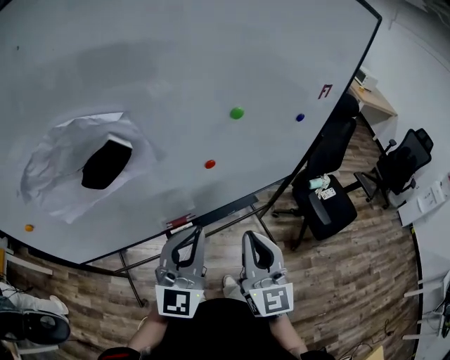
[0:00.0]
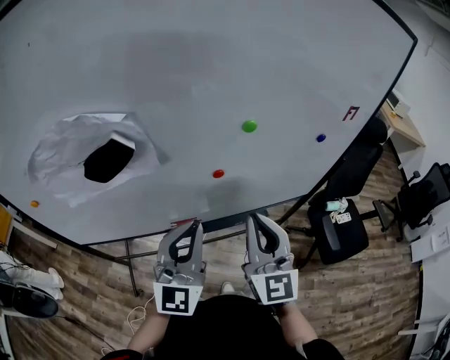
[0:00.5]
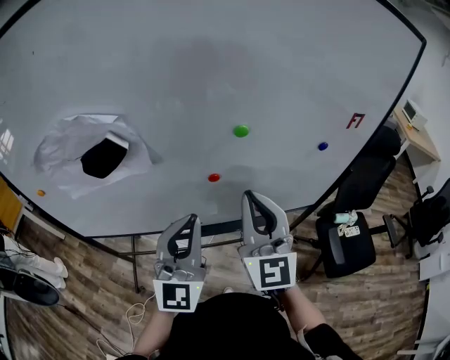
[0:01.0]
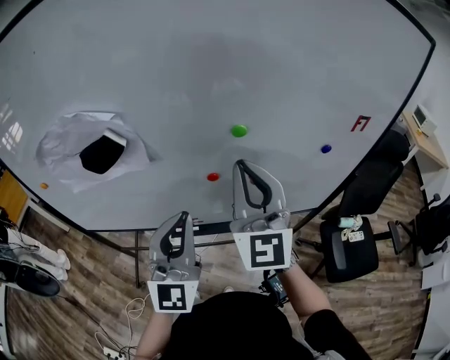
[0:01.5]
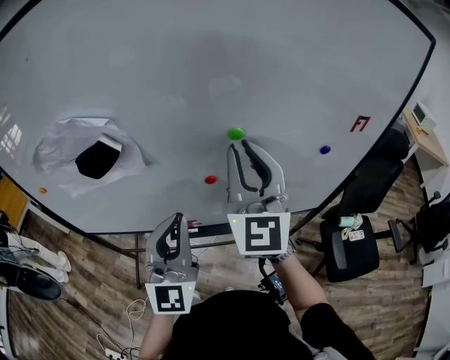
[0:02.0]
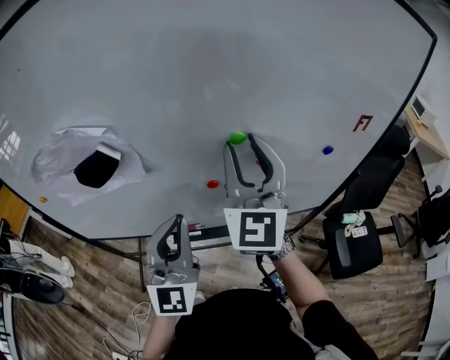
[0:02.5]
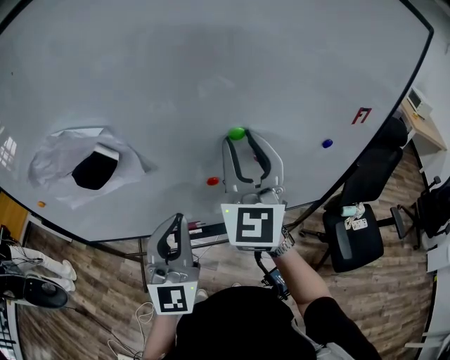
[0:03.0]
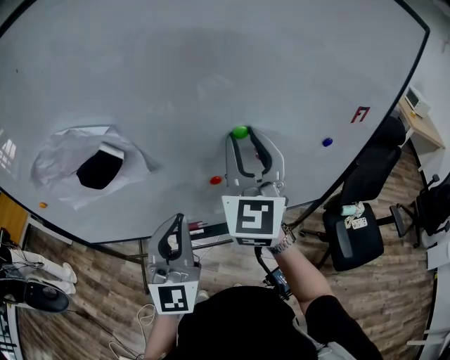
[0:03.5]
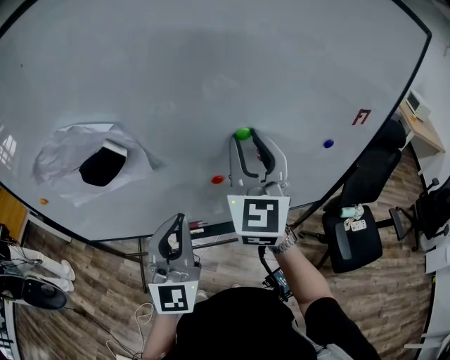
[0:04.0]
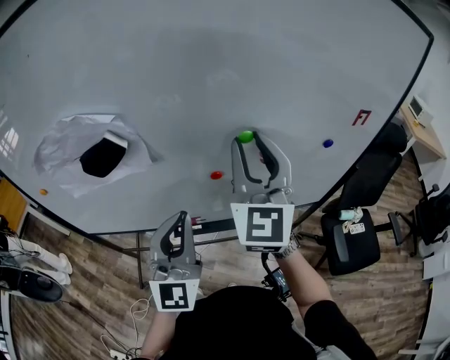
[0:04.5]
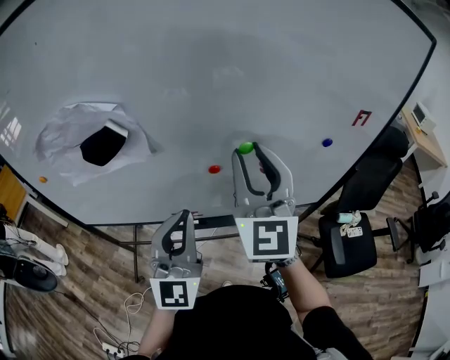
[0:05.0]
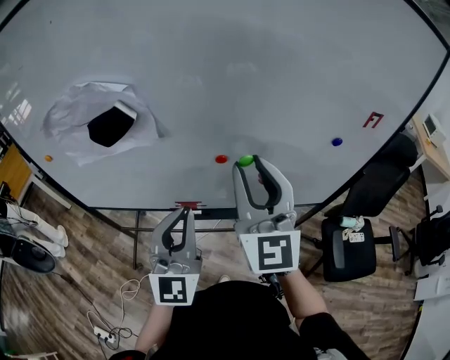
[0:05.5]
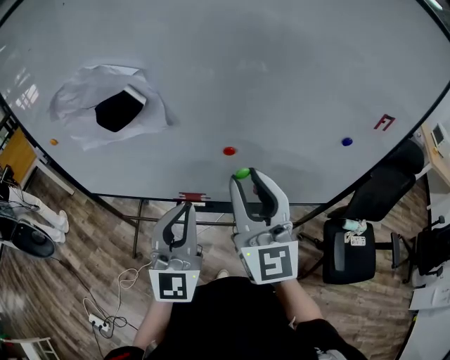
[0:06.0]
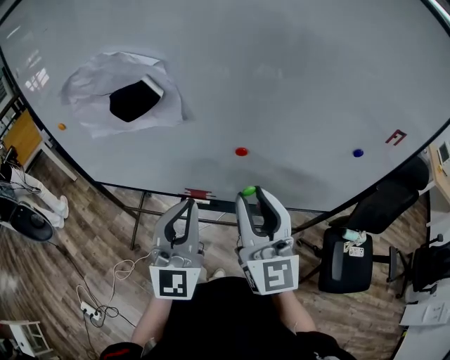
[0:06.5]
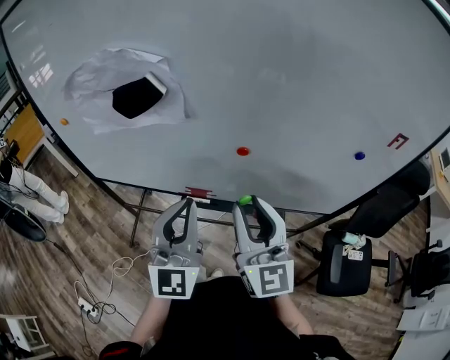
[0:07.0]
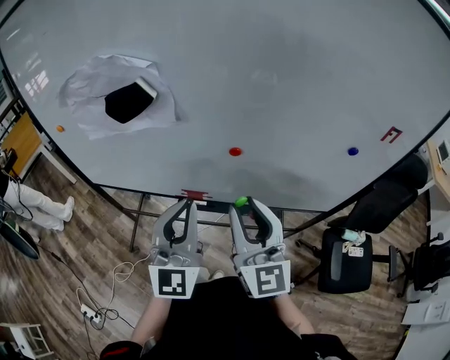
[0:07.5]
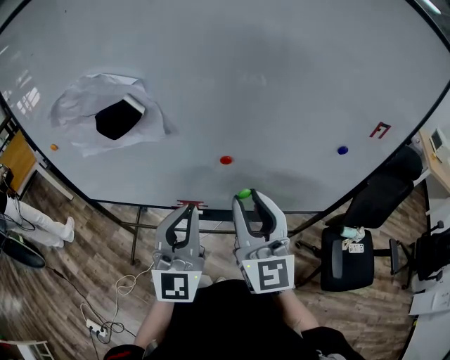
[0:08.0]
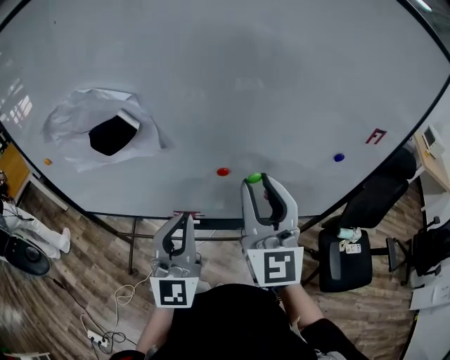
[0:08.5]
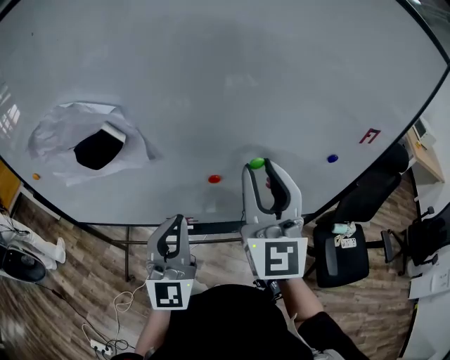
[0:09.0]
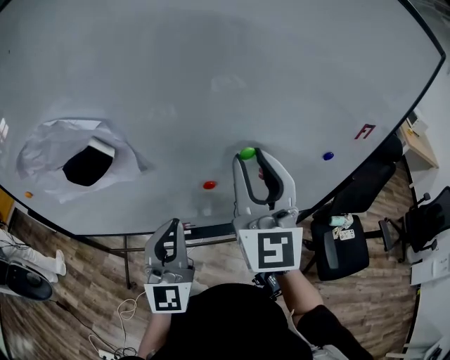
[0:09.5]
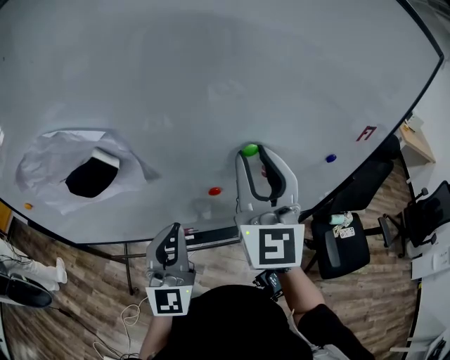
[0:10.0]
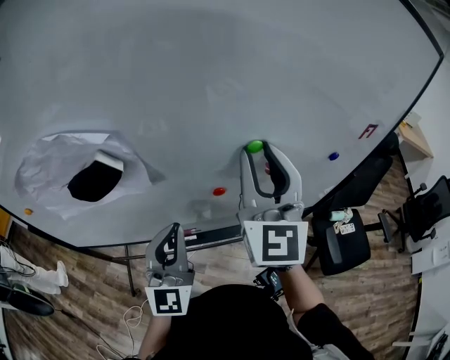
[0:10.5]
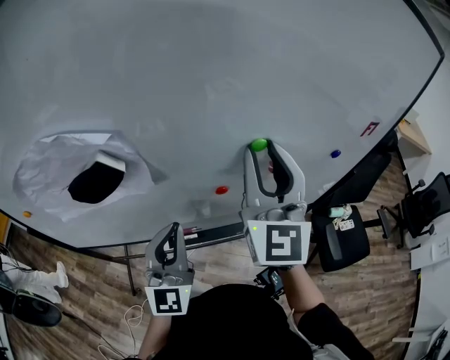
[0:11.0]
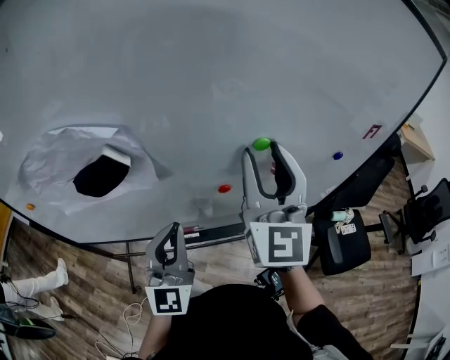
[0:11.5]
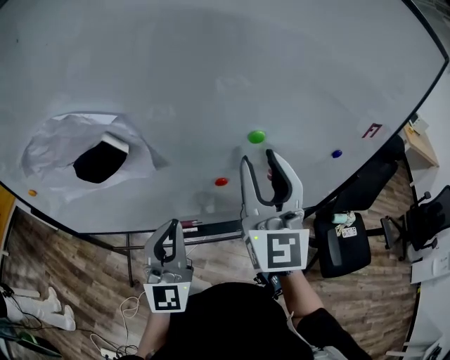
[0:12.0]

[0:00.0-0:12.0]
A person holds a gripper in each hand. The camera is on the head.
0:00.0 to 0:02.0: The right gripper is displaced forward and upward by approximately 25 cm, and swivels roughly 20 degrees. Meanwhile the left gripper moves about 5 cm, and turns by approximately 30 degrees.
0:02.0 to 0:04.0: The grippers move only a little.
0:04.0 to 0:06.0: The left gripper changes place by roughly 5 cm. The right gripper goes about 15 cm backward and downward, and changes its angle by about 20 degrees.
0:08.0 to 0:10.0: The right gripper heads forward and upward, covering some 15 cm, and turns by some 20 degrees. Meanwhile the left gripper travels forward by approximately 5 cm.
0:10.0 to 0:12.0: There are only small adjustments of the grippers.

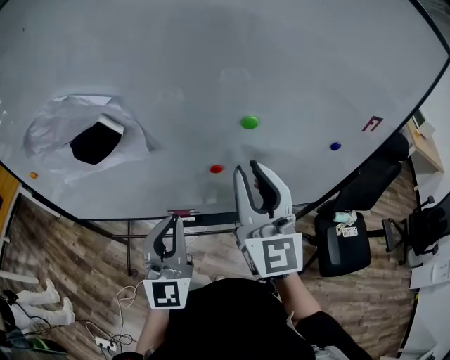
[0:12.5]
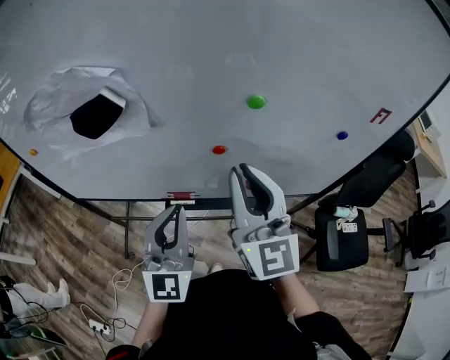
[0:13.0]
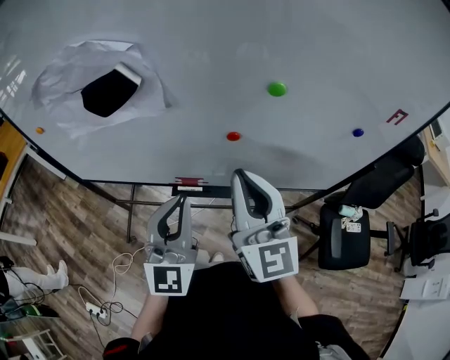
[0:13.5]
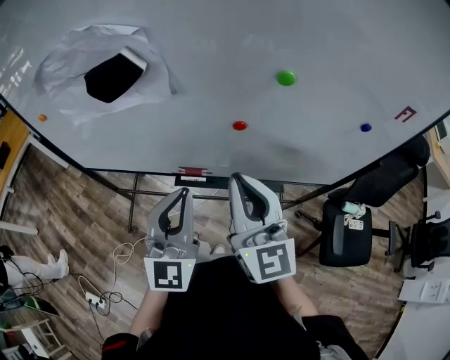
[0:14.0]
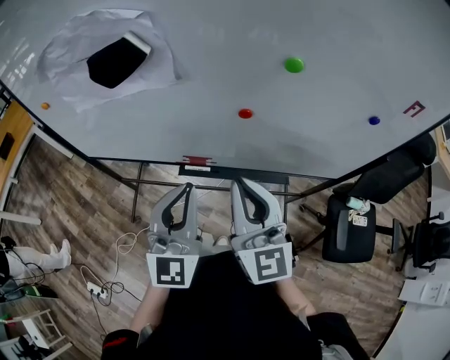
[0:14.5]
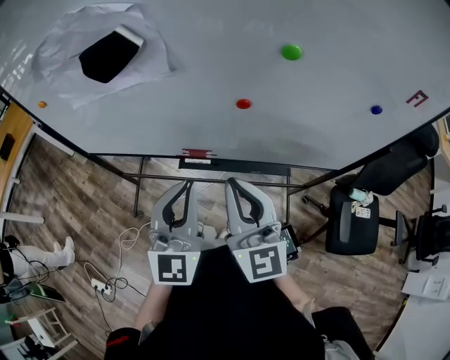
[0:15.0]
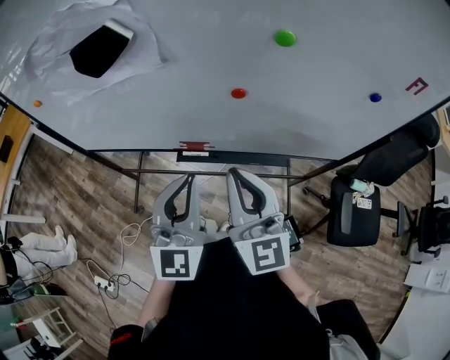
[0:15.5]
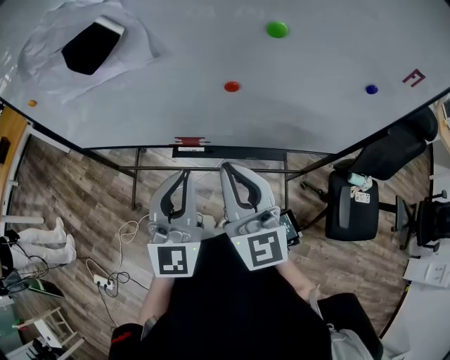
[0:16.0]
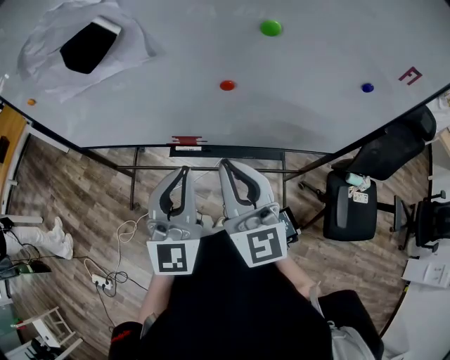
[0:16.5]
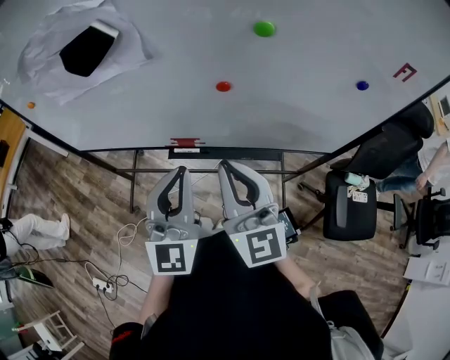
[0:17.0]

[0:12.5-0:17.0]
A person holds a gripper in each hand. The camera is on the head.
0:12.5 to 0:14.5: The right gripper heads downward, backward and to the left, covering roughly 15 cm. Meanwhile the left gripper ends up some 5 cm from where it was.
0:14.5 to 0:17.0: The grippers move only a little.

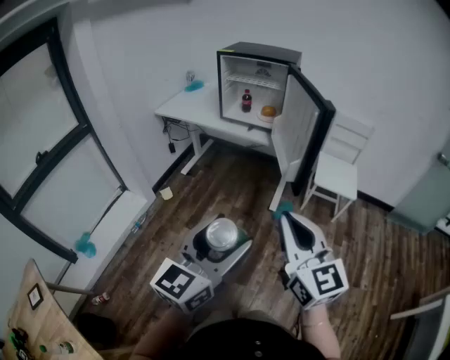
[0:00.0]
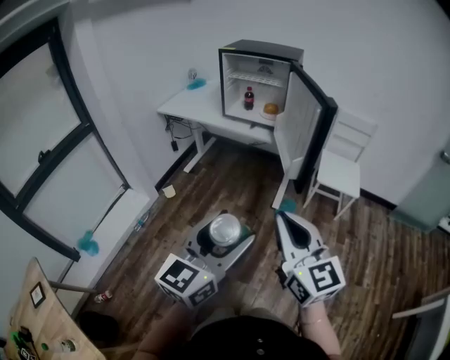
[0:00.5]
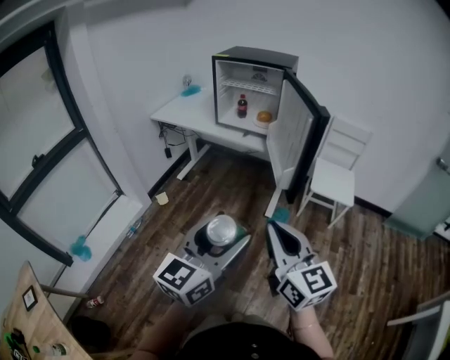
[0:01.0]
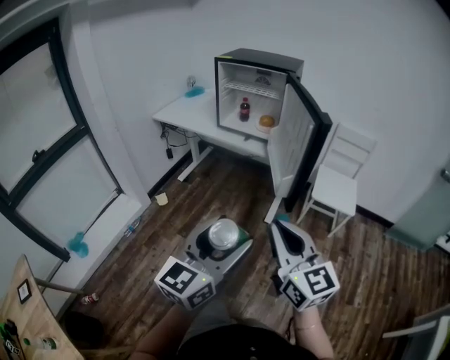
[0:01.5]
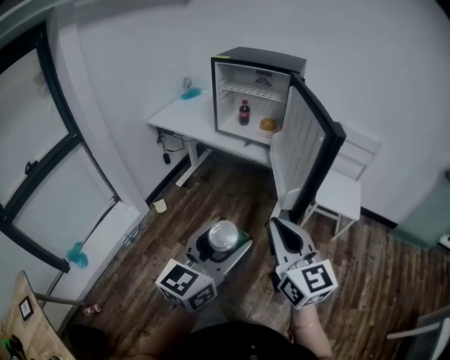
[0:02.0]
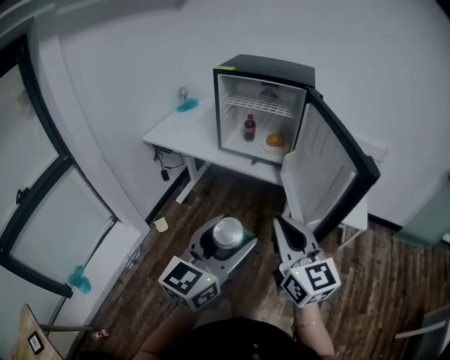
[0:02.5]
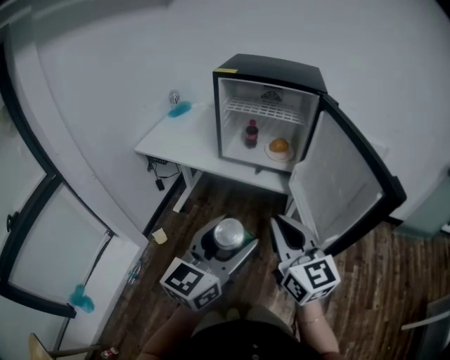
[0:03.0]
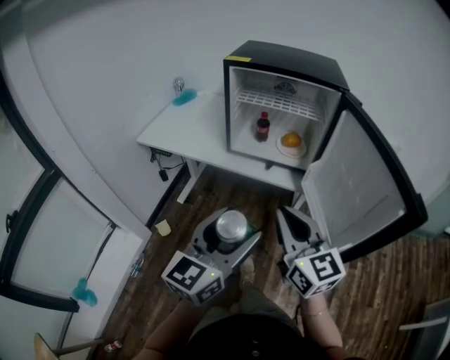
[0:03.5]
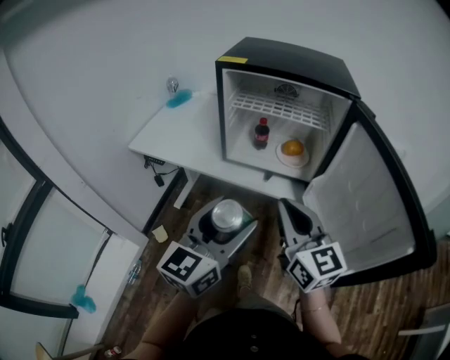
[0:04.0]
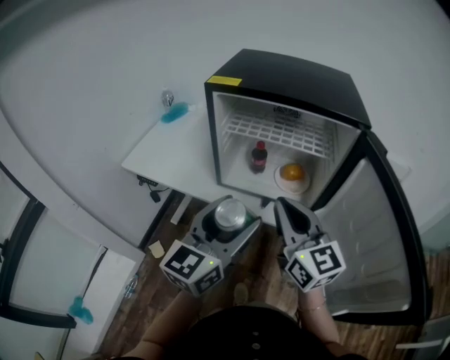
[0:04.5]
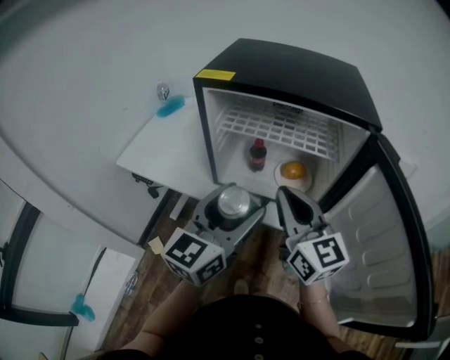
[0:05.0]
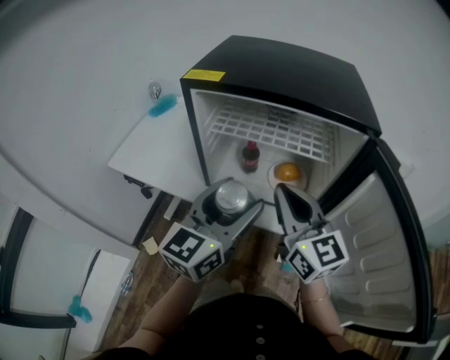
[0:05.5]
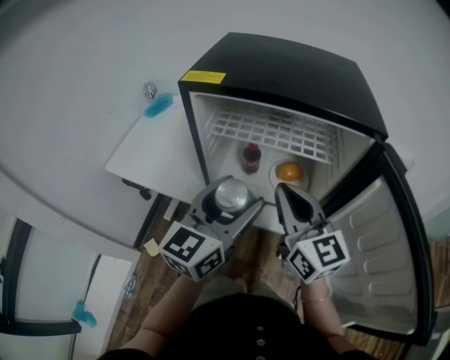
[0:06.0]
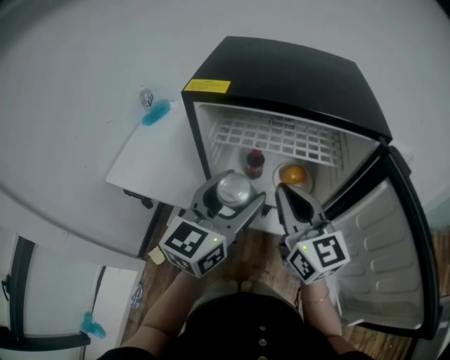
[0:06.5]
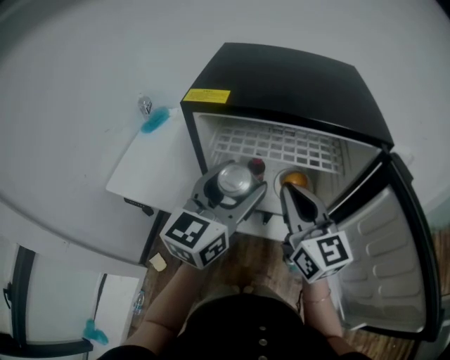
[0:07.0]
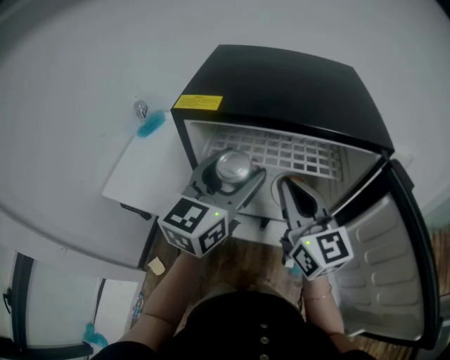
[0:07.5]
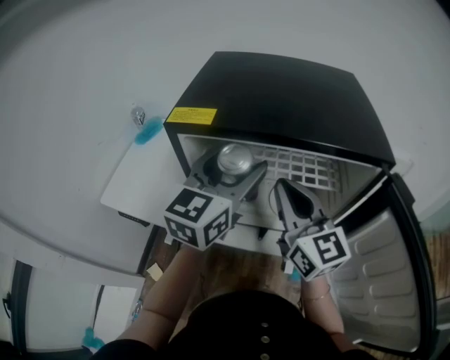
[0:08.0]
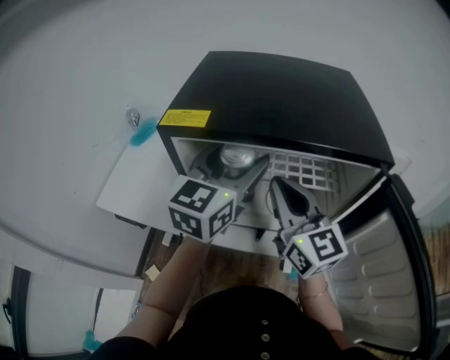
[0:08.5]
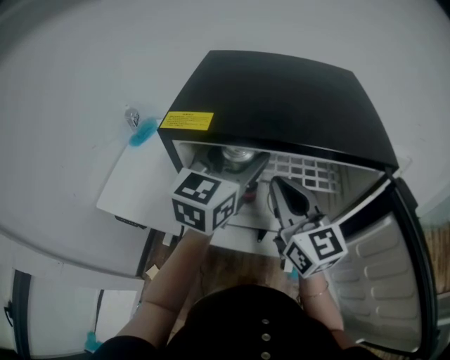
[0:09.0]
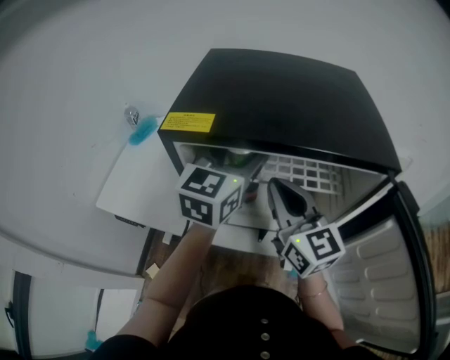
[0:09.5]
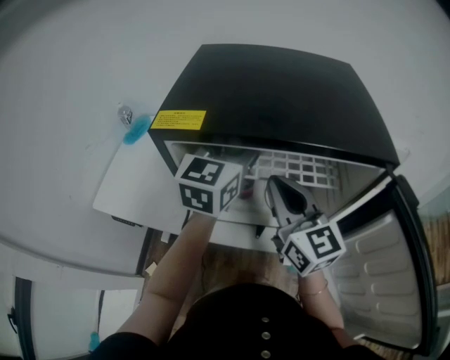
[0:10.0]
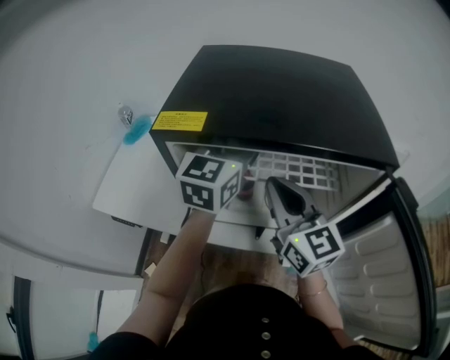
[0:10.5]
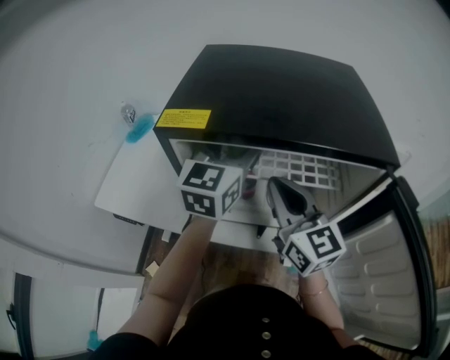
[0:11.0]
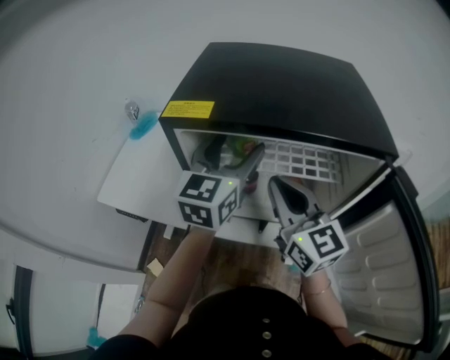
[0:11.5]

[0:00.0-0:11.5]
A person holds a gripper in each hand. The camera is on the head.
0:00.0 to 0:02.0: The two grippers go roughly 15 cm forward.
0:02.0 to 0:04.0: Both grippers move forward and to the left, about 40 cm.
0:04.0 to 0:06.0: The two grippers go some 20 cm forward.
0:06.0 to 0:07.5: The right gripper heads forward, covering roughly 5 cm; the left gripper moves forward, about 10 cm.
0:07.5 to 0:09.5: The left gripper is displaced forward by approximately 10 cm. The right gripper changes place by roughly 5 cm.
0:09.5 to 0:11.5: The grippers move only a little.
